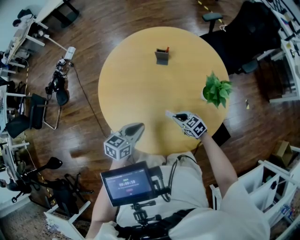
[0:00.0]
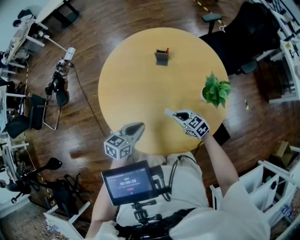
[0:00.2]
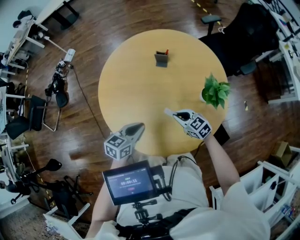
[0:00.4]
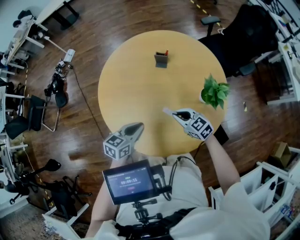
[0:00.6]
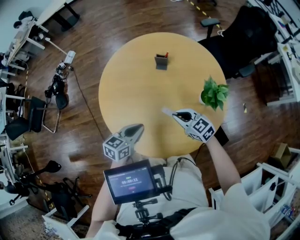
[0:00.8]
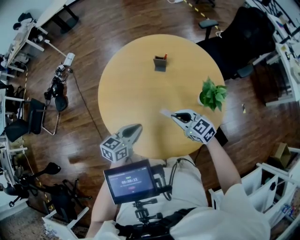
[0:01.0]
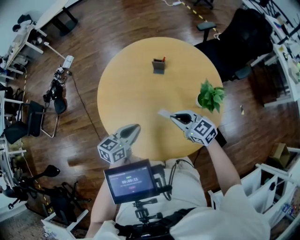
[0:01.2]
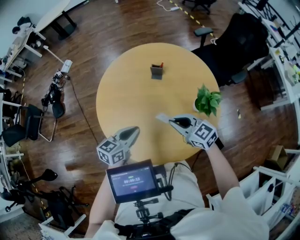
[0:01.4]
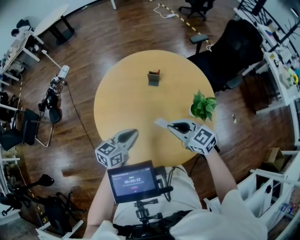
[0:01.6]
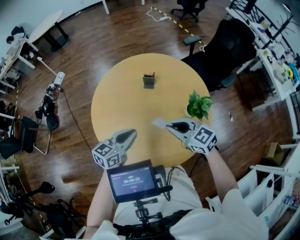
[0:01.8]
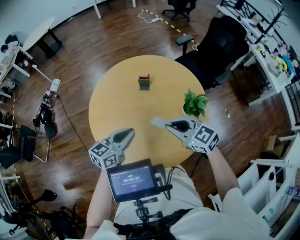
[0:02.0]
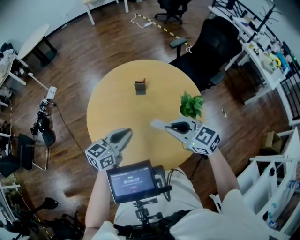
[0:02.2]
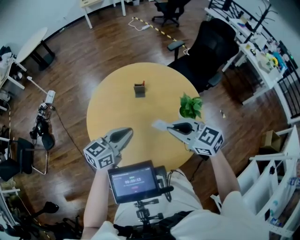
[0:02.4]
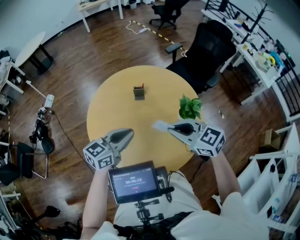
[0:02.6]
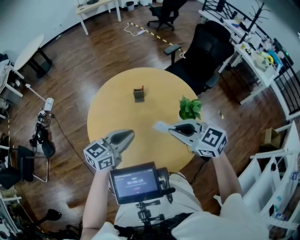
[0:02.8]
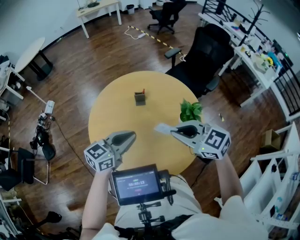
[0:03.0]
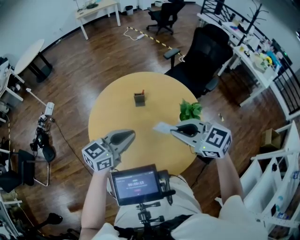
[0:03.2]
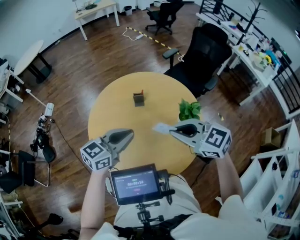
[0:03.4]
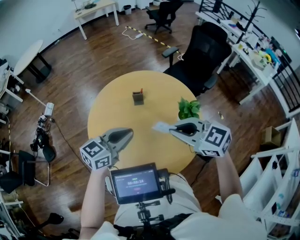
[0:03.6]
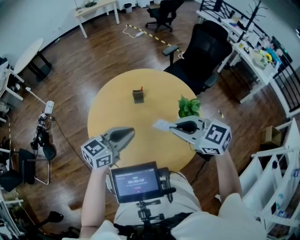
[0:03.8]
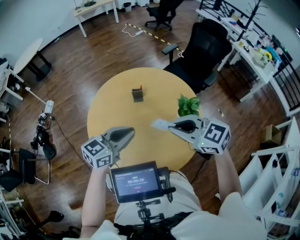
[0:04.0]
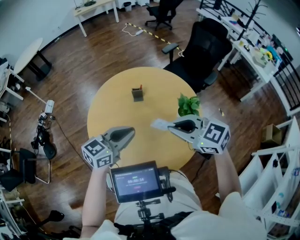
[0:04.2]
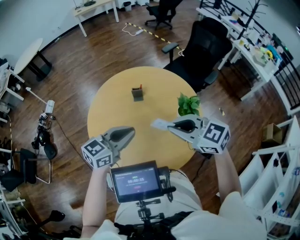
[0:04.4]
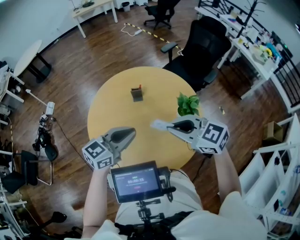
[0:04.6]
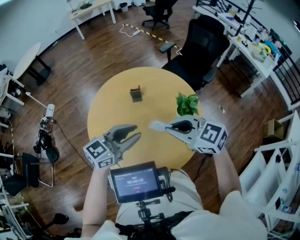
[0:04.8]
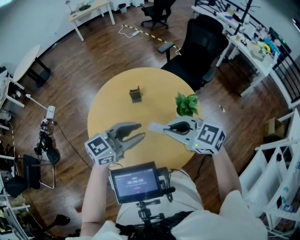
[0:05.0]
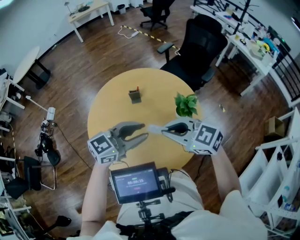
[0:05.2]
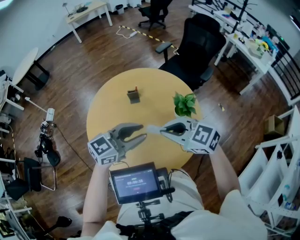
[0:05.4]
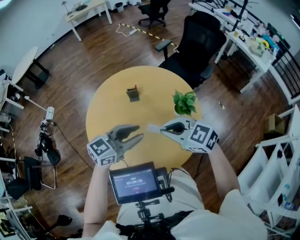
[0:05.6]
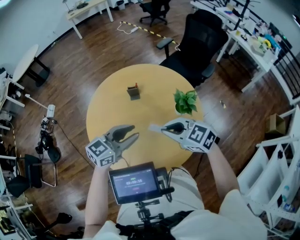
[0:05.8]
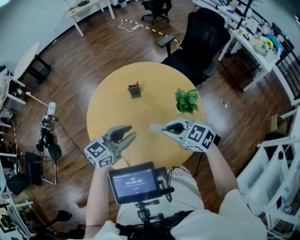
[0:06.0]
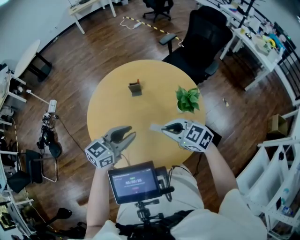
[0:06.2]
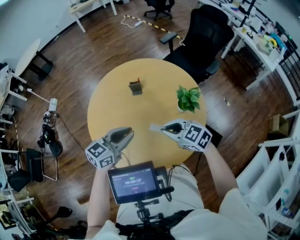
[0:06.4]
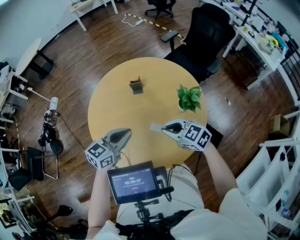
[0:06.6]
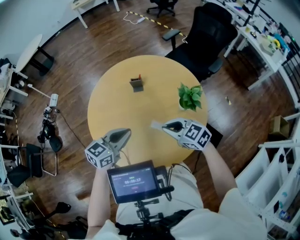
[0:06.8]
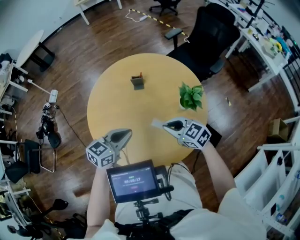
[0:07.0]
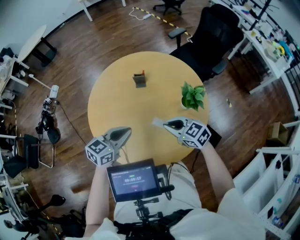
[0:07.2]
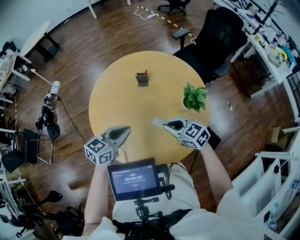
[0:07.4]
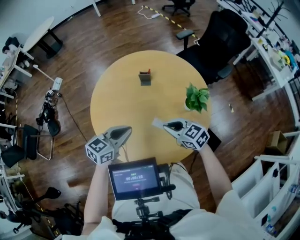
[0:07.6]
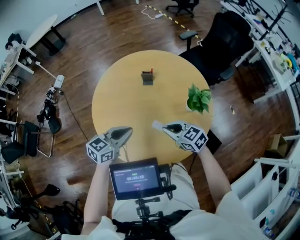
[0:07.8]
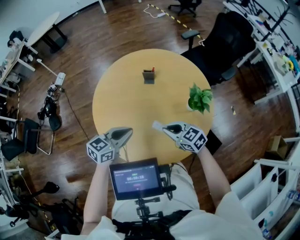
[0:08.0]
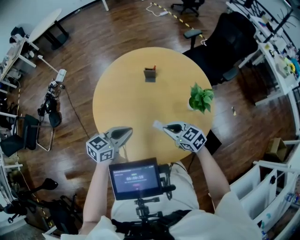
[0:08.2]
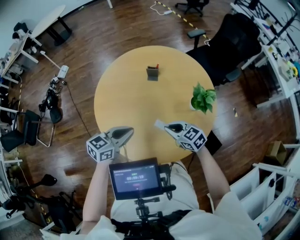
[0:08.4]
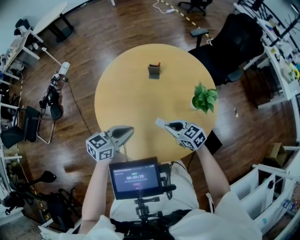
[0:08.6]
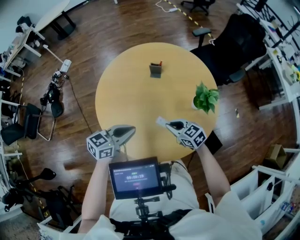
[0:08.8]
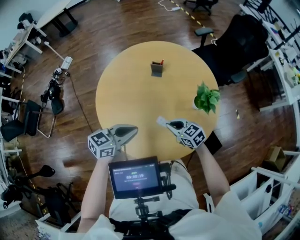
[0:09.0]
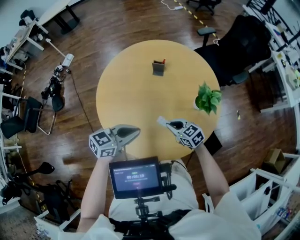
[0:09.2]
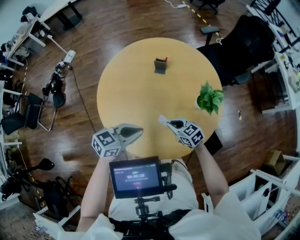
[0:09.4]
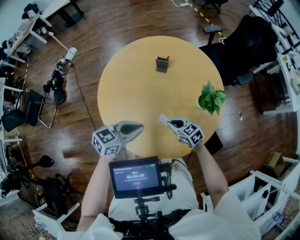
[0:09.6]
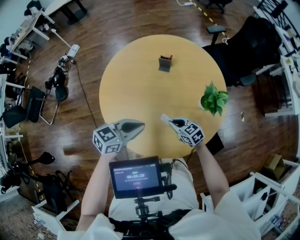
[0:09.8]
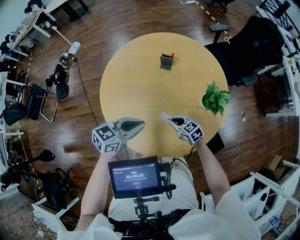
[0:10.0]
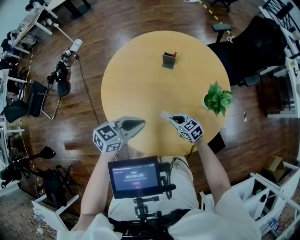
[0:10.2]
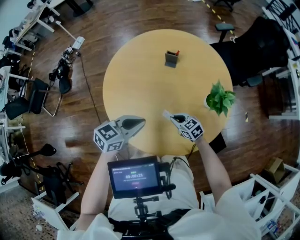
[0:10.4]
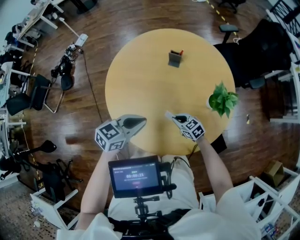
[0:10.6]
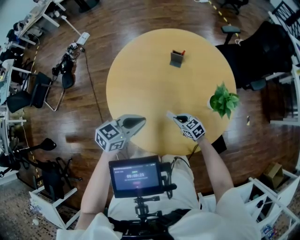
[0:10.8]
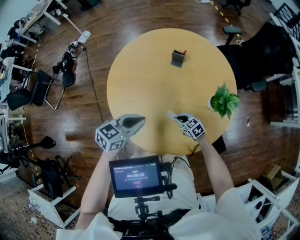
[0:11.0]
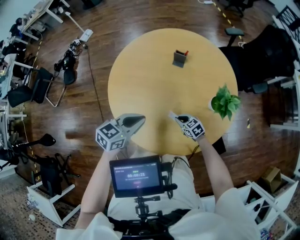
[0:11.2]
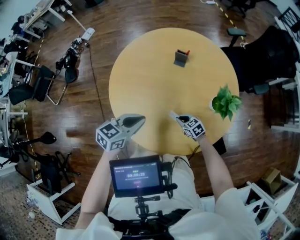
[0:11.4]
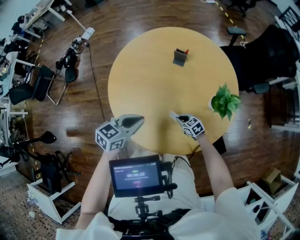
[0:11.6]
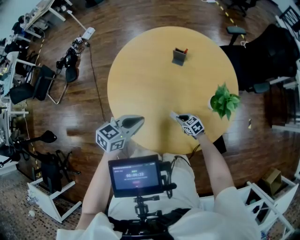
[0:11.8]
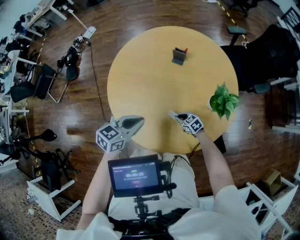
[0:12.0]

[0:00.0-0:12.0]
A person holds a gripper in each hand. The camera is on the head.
0.0 to 1.6 s: The left gripper moves upward, approximately 10 cm. Meanwhile the right gripper travels upward by roughly 25 cm.
1.6 to 3.0 s: Both grippers travel together upward, about 15 cm. The left gripper swivels approximately 20 degrees.
3.0 to 4.4 s: The grippers stay close to where they were, moving slightly.
4.4 to 6.0 s: The left gripper opens, while the right gripper moves downward, some 10 cm.
6.0 to 7.6 s: Both grippers move downward, about 5 cm. The left gripper closes its fingers.
7.6 to 9.0 s: The right gripper goes roughly 10 cm downward.
9.0 to 10.4 s: The right gripper shifts approximately 10 cm downward.
10.4 to 12.0 s: The right gripper travels downward by approximately 10 cm.

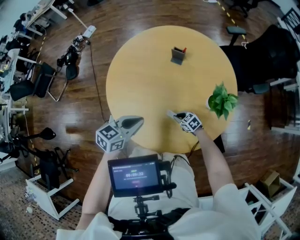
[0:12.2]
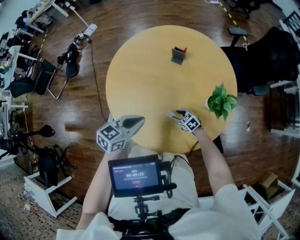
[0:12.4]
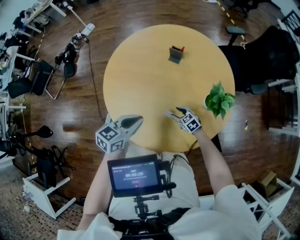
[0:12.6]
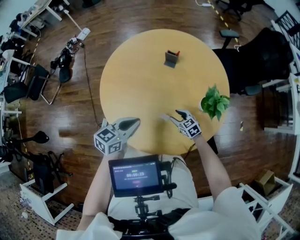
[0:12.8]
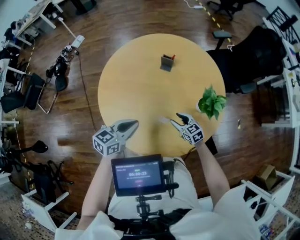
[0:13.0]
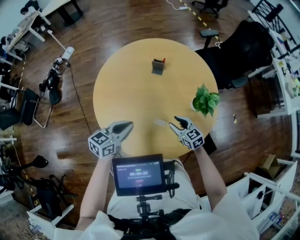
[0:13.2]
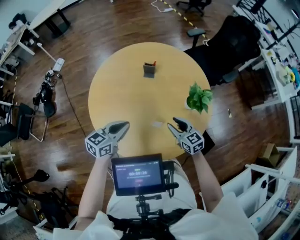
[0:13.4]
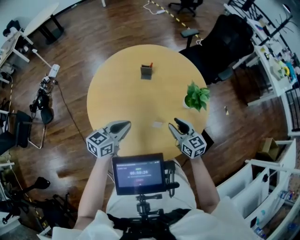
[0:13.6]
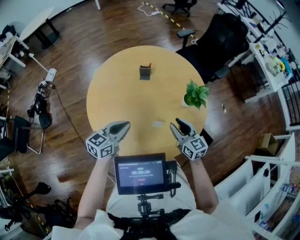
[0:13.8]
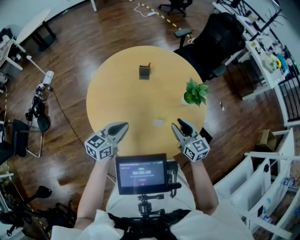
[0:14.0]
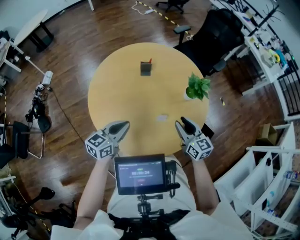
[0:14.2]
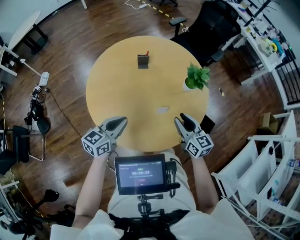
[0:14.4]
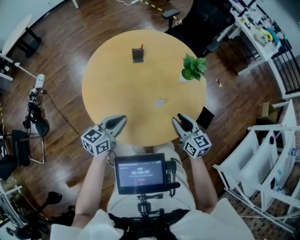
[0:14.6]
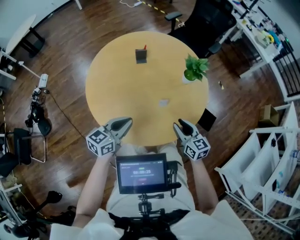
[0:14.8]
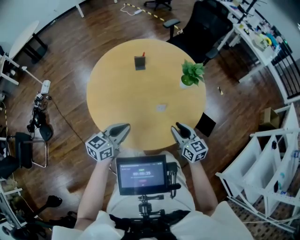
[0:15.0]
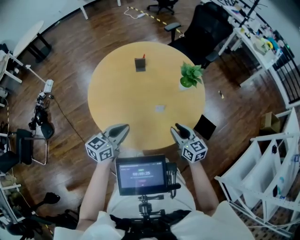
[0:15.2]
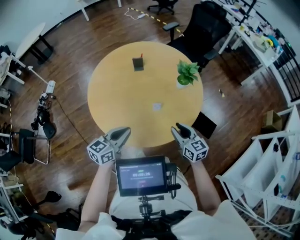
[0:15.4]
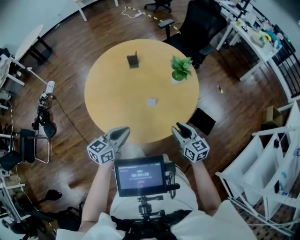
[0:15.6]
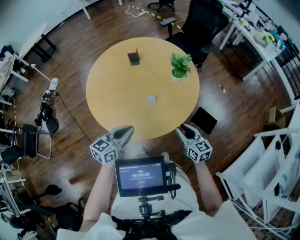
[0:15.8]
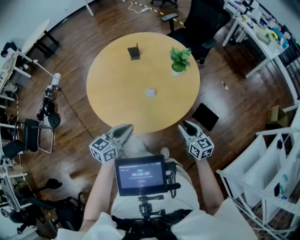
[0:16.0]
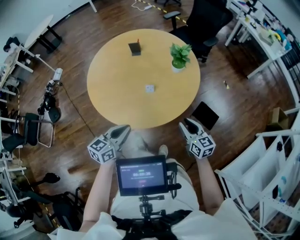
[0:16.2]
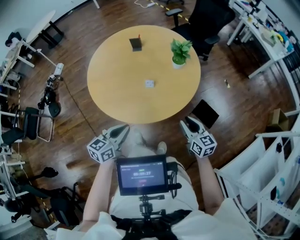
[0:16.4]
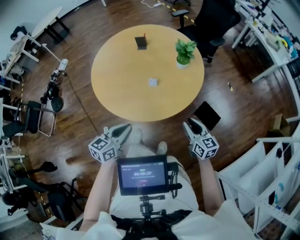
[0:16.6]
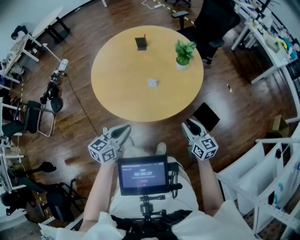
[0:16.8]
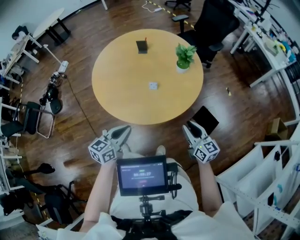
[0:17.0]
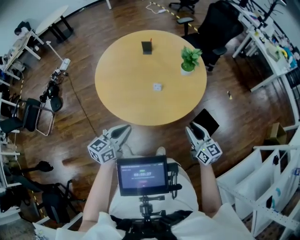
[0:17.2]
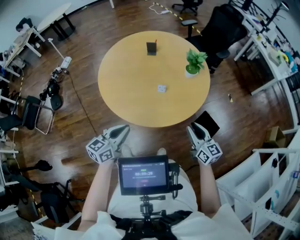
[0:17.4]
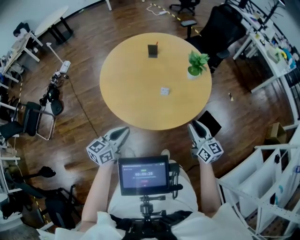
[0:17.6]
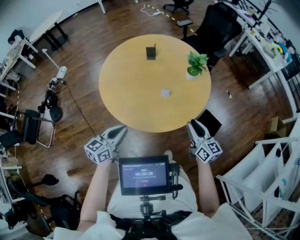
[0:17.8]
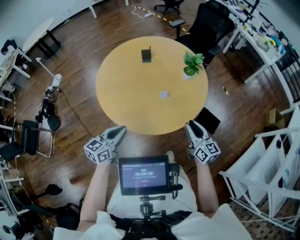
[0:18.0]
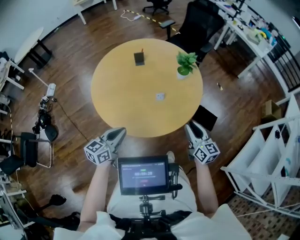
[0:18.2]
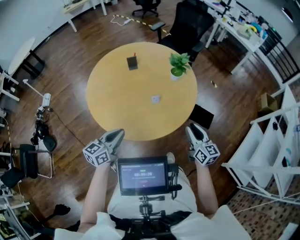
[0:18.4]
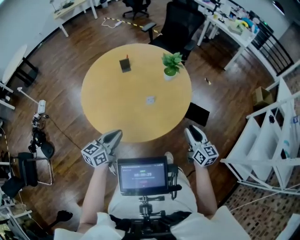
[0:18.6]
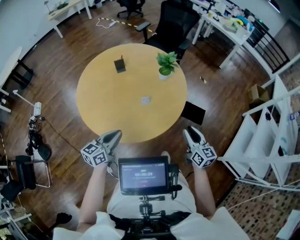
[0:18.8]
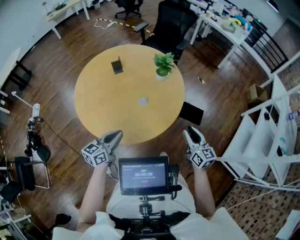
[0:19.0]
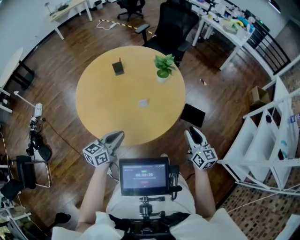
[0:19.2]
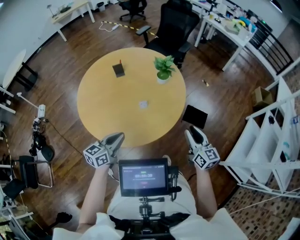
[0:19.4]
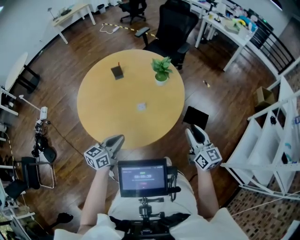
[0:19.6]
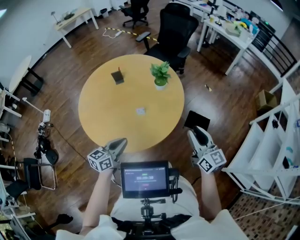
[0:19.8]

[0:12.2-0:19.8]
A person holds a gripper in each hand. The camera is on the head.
12.2 to 13.8 s: The left gripper ends up approximately 10 cm from where it was; the right gripper shifts approximately 30 cm upward, turns by roughly 60 degrees, and opens its fingers.
13.8 to 15.2 s: Both grippers travel together backward, some 15 cm.
15.2 to 16.8 s: The left gripper shifts about 20 cm backward and to the right; the right gripper travels to the right and backward by approximately 20 cm.
16.8 to 18.2 s: The left gripper goes approximately 20 cm to the left and forward, while the right gripper moves to the left, about 10 cm.
18.2 to 19.8 s: The right gripper goes about 15 cm to the right and upward. Meanwhile the left gripper is displaced to the right and forward by about 15 cm.

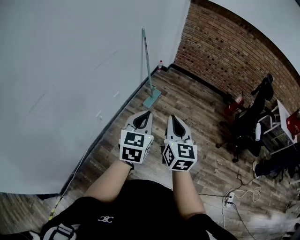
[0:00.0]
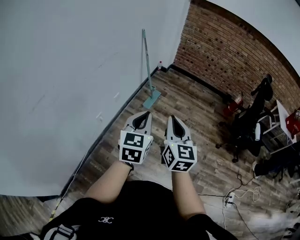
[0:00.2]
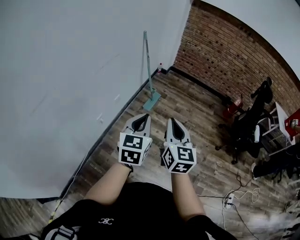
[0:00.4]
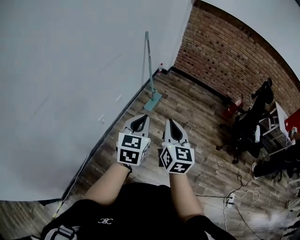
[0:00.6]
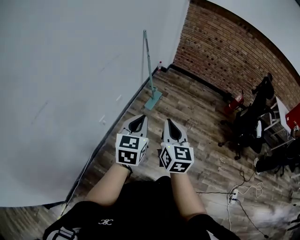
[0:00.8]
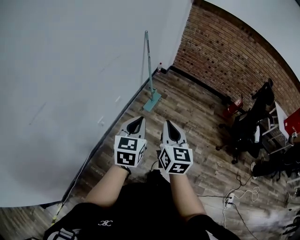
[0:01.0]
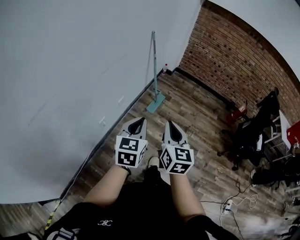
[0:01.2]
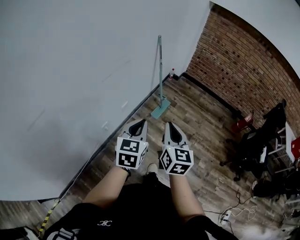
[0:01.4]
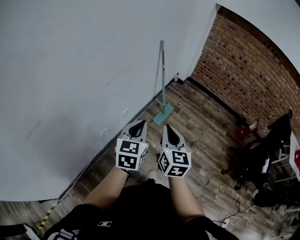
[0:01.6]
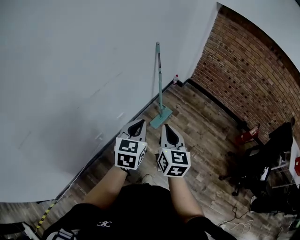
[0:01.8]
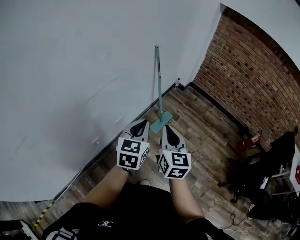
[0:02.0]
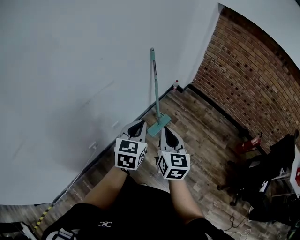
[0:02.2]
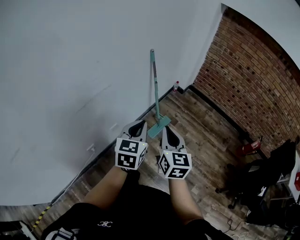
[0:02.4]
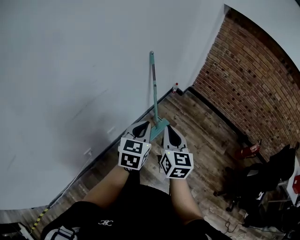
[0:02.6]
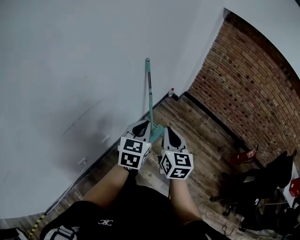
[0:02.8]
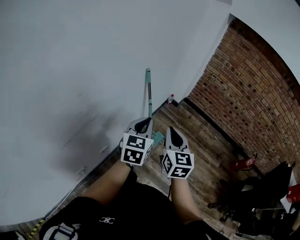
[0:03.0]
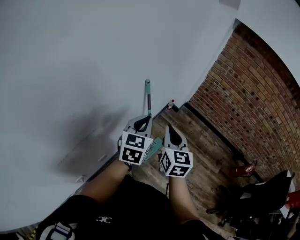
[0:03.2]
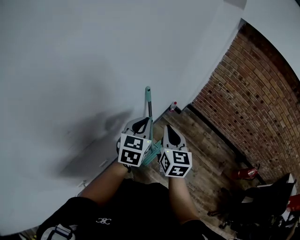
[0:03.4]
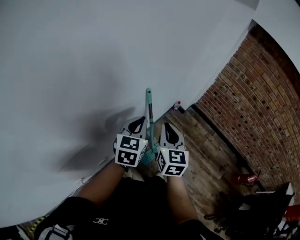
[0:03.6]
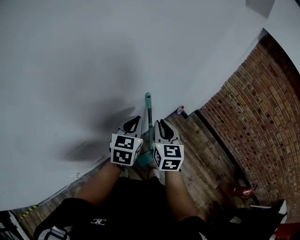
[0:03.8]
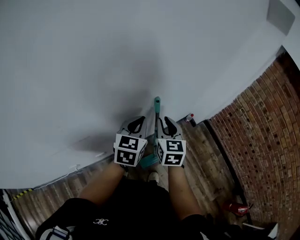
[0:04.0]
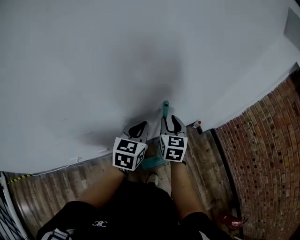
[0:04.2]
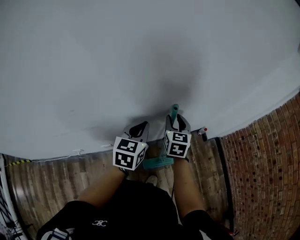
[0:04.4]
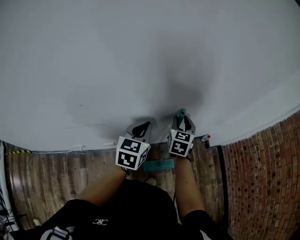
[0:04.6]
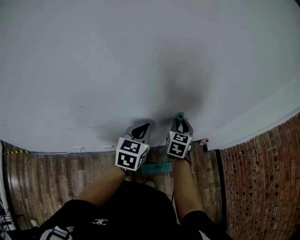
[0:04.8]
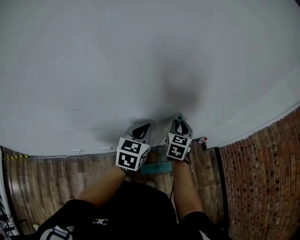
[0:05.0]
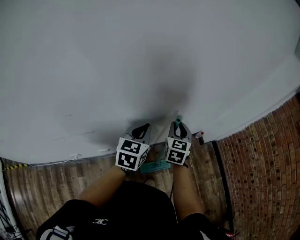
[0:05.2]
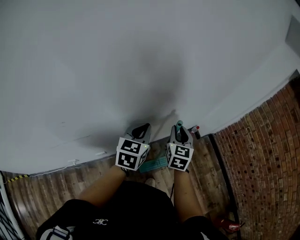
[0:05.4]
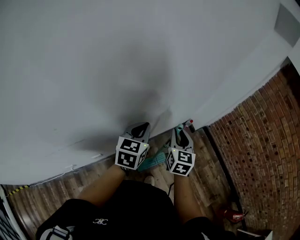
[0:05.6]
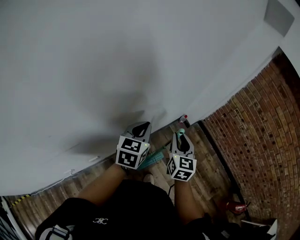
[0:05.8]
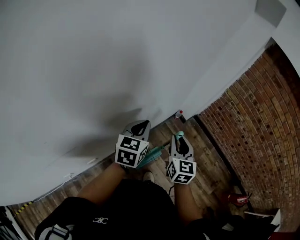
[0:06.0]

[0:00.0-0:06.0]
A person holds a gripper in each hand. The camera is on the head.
0.0 to 1.6 s: The two grippers go approximately 20 cm forward and to the left.
1.6 to 3.0 s: The pair of grippers is taken forward, some 40 cm.
3.0 to 4.4 s: The right gripper changes place by approximately 35 cm, swivels roughly 30 degrees, and opens its fingers. The left gripper ends up approximately 20 cm from where it was, and rotates some 30 degrees.
4.4 to 6.0 s: The left gripper travels to the right by some 10 cm, and turns by roughly 20 degrees. Meanwhile the right gripper moves to the right and backward, some 20 cm, and turns by approximately 20 degrees.
